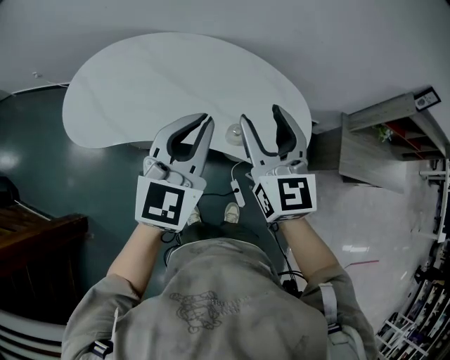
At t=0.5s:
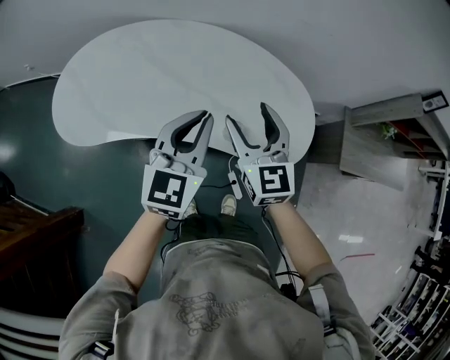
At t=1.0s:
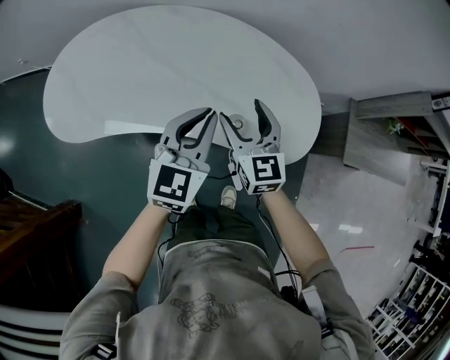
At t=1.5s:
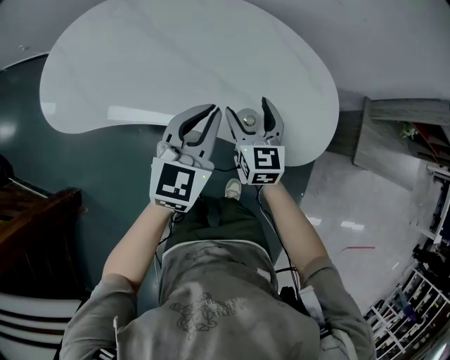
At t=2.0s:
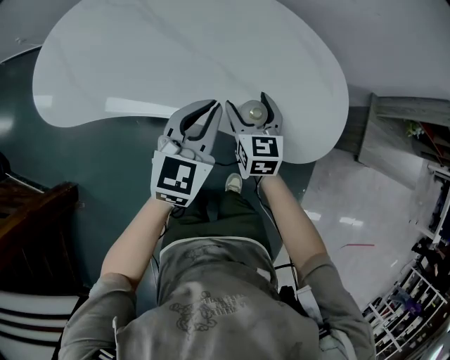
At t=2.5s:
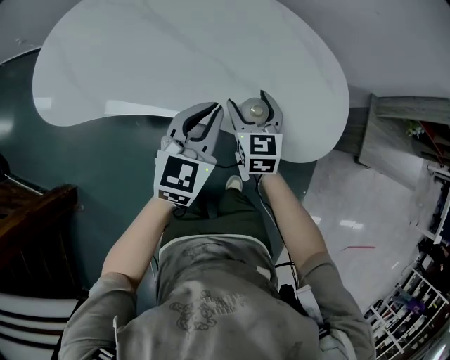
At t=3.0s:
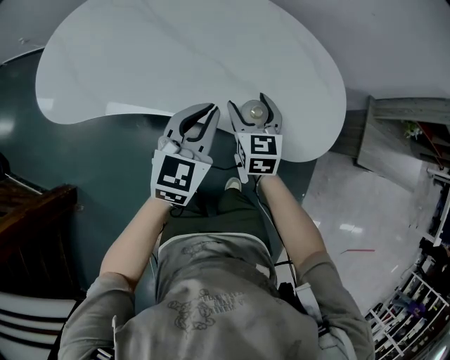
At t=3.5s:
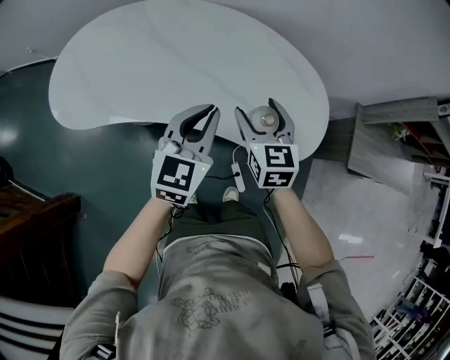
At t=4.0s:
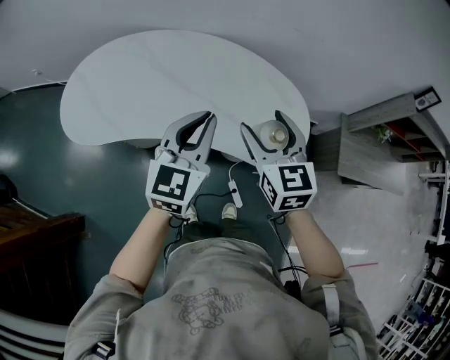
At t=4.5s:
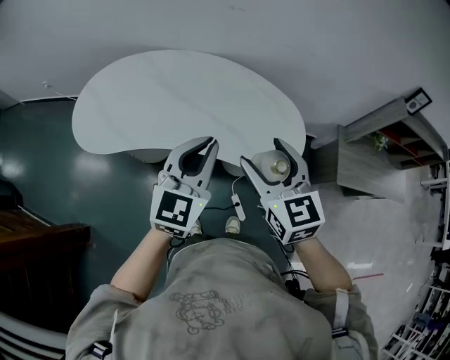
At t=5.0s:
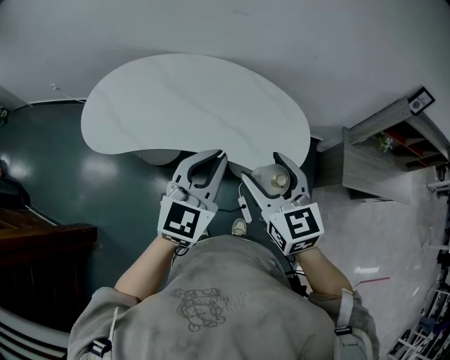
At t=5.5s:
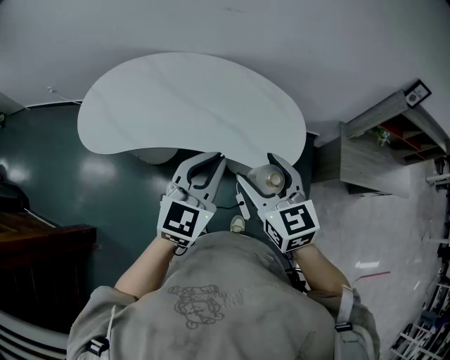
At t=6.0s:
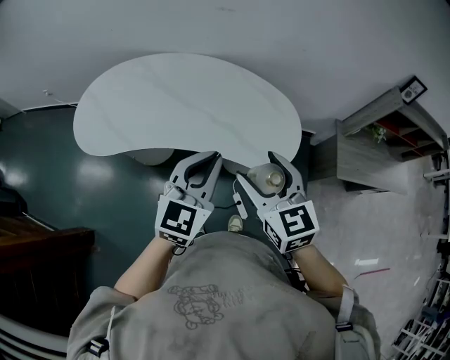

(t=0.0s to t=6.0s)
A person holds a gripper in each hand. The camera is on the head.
t=0.0s - t=2.0s: Both grippers move downward, roughly 30 cm. The right gripper rotates some 20 degrees.
t=2.0s - t=4.0s: Both grippers travel together upward, approximately 20 cm.
t=4.0s - t=6.0s: Both grippers move backward, about 10 cm.

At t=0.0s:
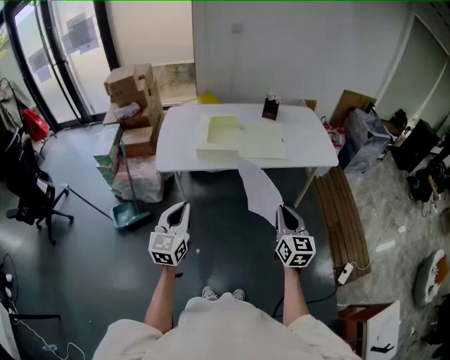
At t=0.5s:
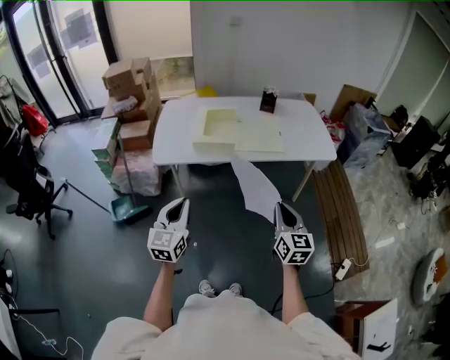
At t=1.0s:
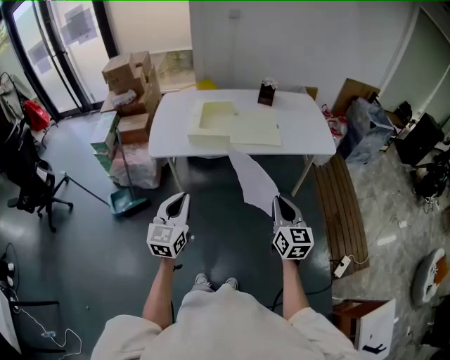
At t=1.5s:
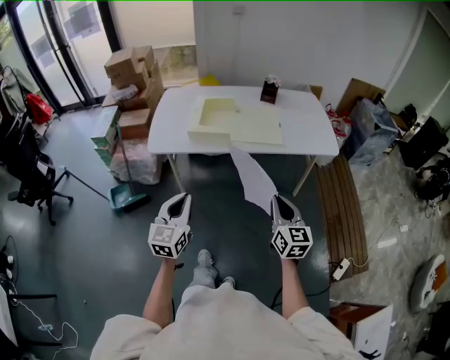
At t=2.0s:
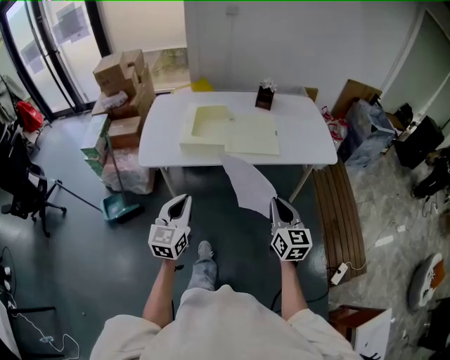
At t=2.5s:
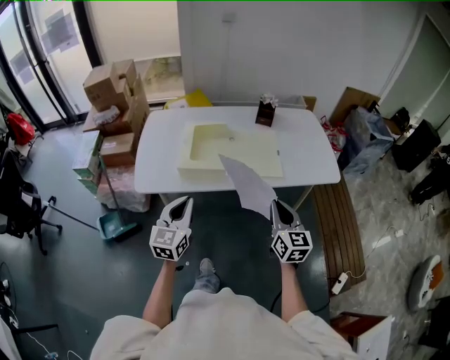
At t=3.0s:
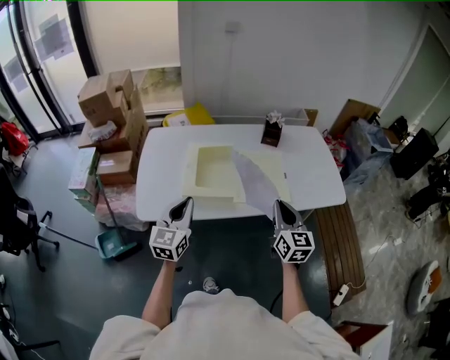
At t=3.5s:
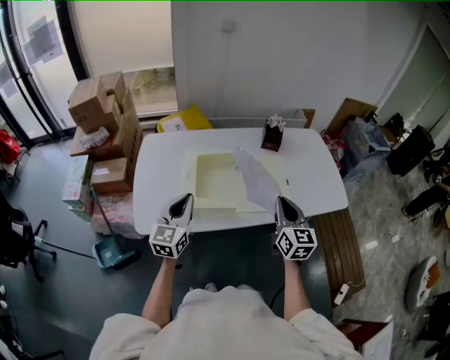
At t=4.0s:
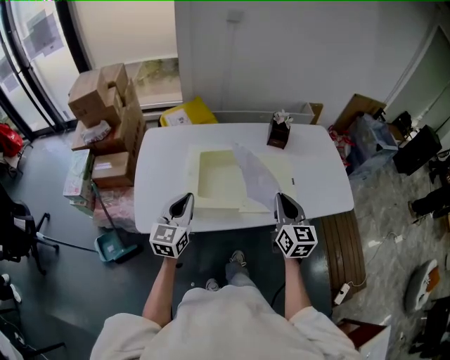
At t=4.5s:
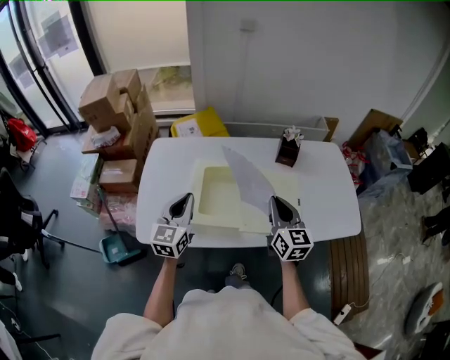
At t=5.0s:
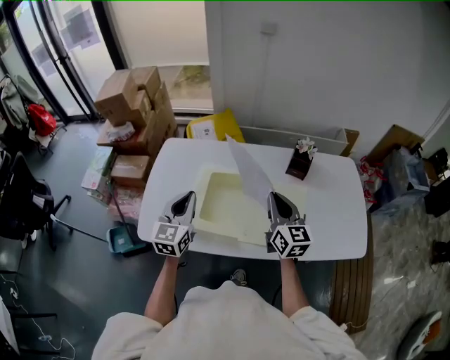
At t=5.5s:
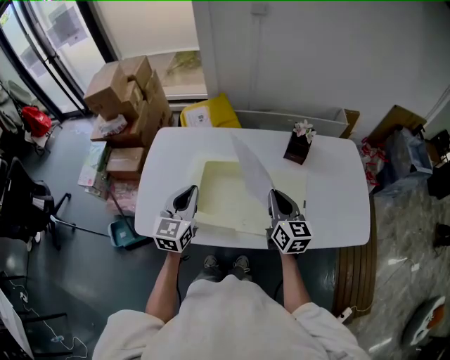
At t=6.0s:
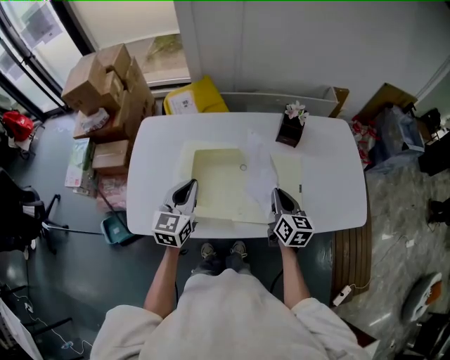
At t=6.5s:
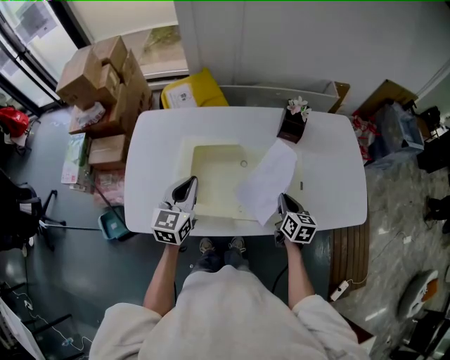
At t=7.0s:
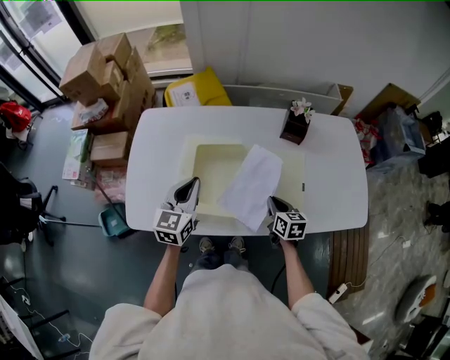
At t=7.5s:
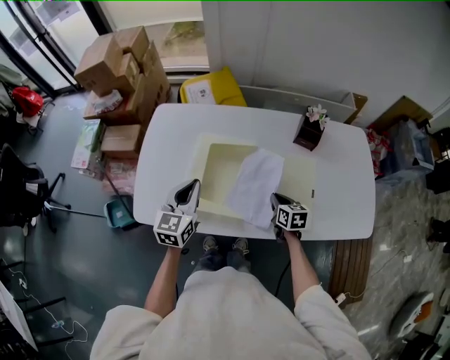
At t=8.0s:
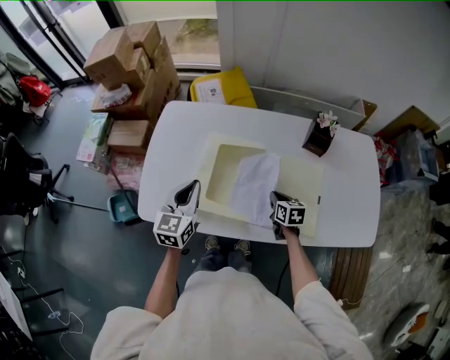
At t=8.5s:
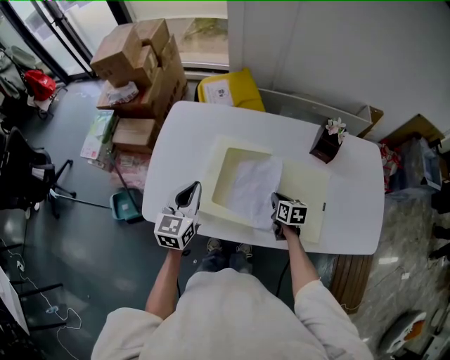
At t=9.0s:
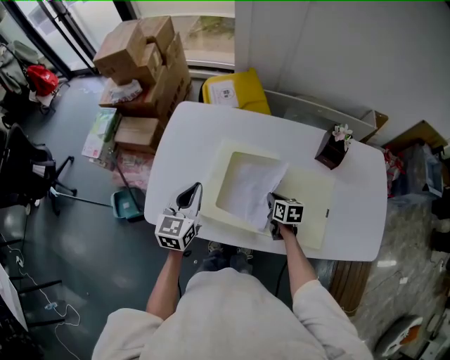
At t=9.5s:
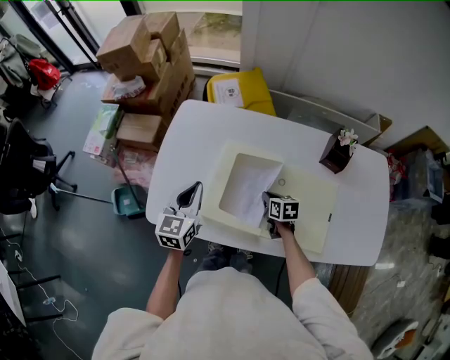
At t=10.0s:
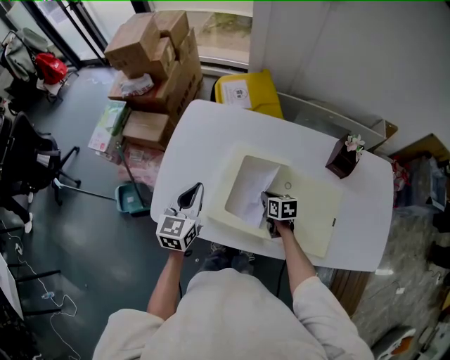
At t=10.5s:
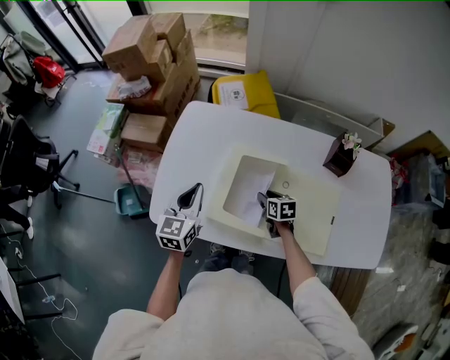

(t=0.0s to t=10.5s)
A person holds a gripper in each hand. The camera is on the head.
t=0.0s - t=2.0s: The right gripper goes roughly 10 cm forward and to the right. The left gripper heads to the right and forward, covering approximately 10 cm.
t=2.0s - t=4.0s: Both grippers move forward, about 35 cm.
t=4.0s - t=6.5s: The right gripper goes some 25 cm downward, forward and to the right, and swivels about 30 degrees. The left gripper moves forward and to the right, approximately 15 cm.
t=6.5s - t=8.5s: The right gripper travels to the left, downward and forward by some 15 cm, and swivels roughly 20 degrees. The left gripper goes approximately 10 cm to the left.
t=8.5s - t=10.5s: The right gripper is displaced to the left and forward by about 10 cm, and opens.

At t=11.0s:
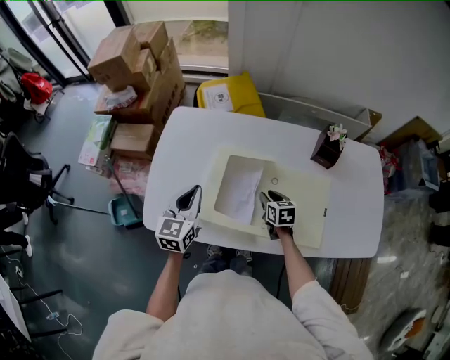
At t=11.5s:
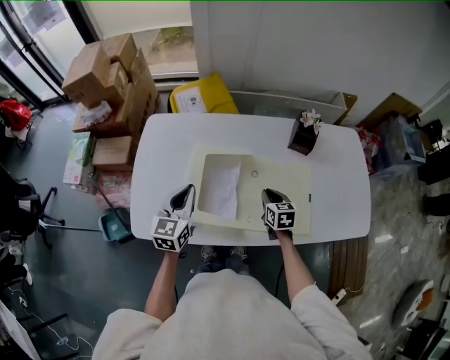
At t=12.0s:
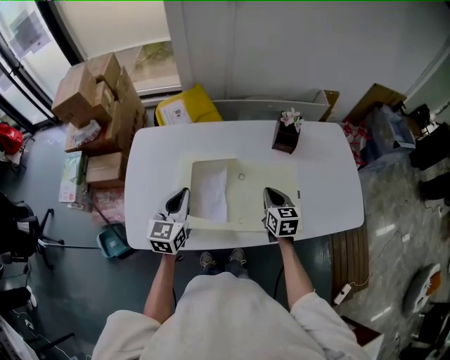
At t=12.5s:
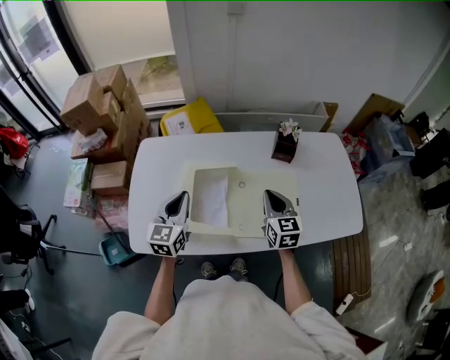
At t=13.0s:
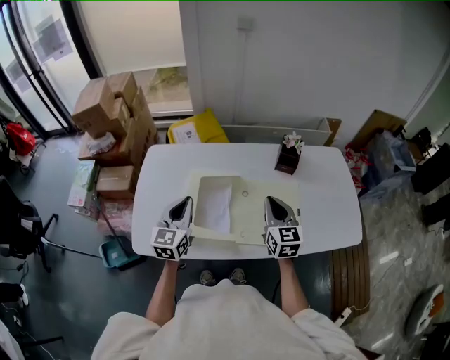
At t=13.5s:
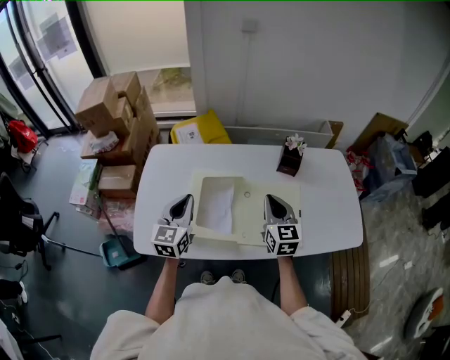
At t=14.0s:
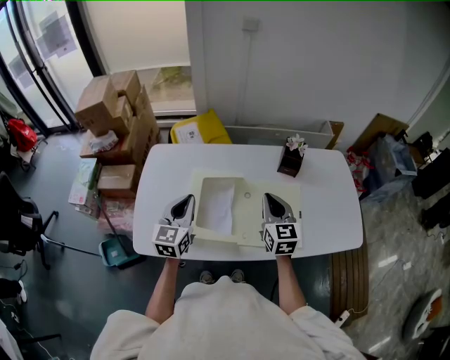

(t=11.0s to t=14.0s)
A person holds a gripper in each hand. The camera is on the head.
t=11.0s - t=12.5s: The right gripper goes about 20 cm upward and to the right, turns by some 30 degrees, and closes. Meanwhile the left gripper travels to the right by about 5 cm.
t=12.5s - t=14.0s: The right gripper ends up some 5 cm from where it was.

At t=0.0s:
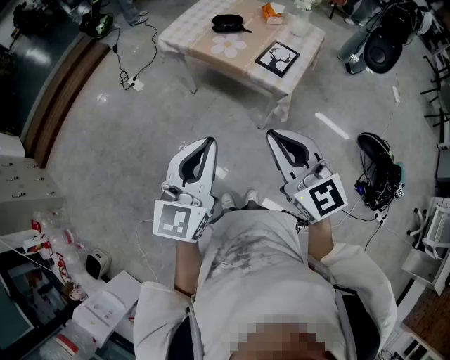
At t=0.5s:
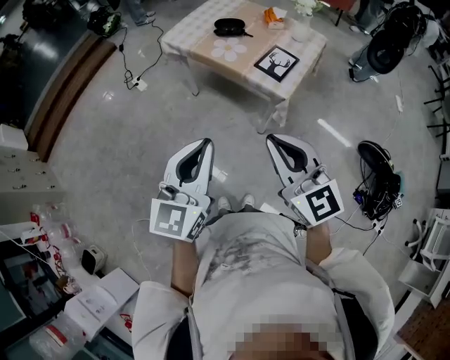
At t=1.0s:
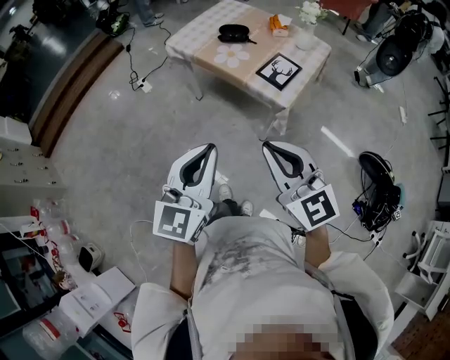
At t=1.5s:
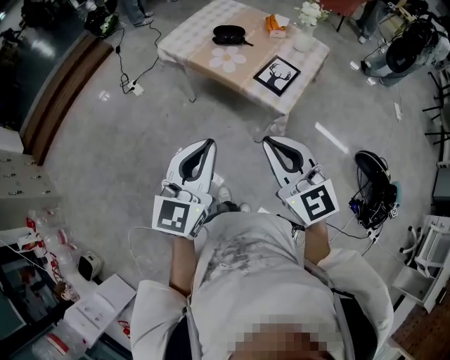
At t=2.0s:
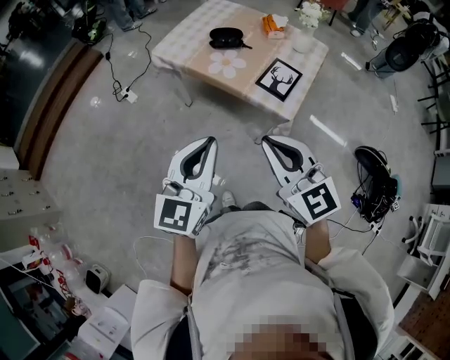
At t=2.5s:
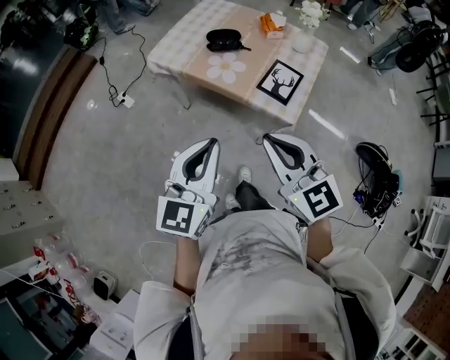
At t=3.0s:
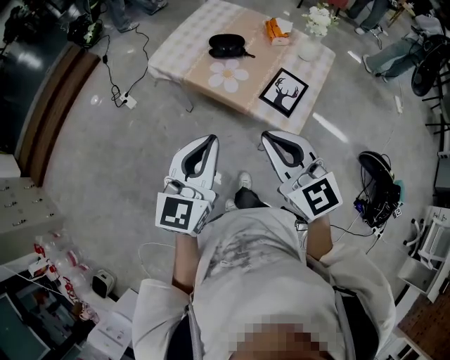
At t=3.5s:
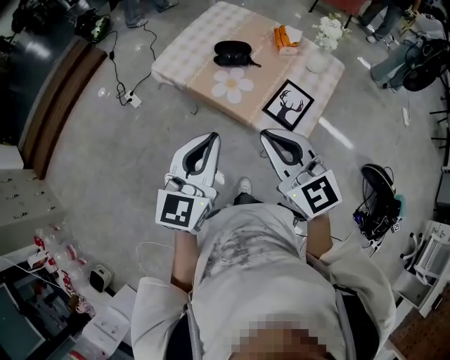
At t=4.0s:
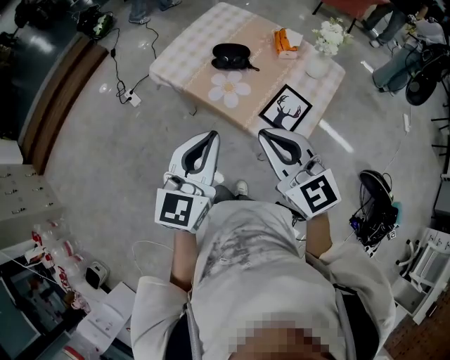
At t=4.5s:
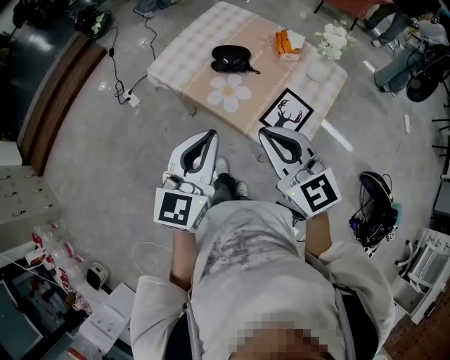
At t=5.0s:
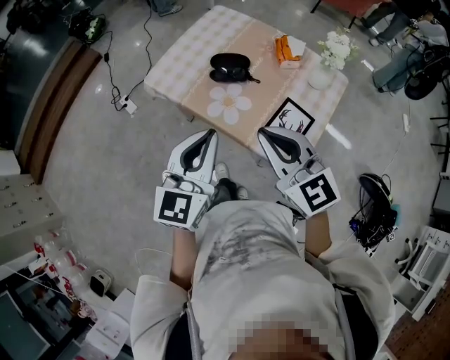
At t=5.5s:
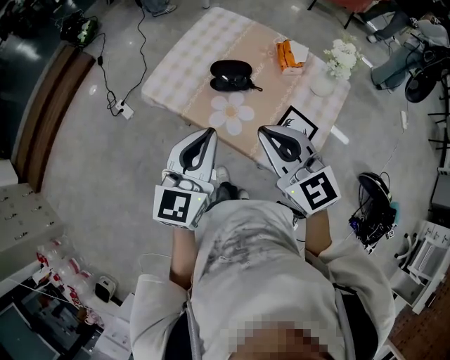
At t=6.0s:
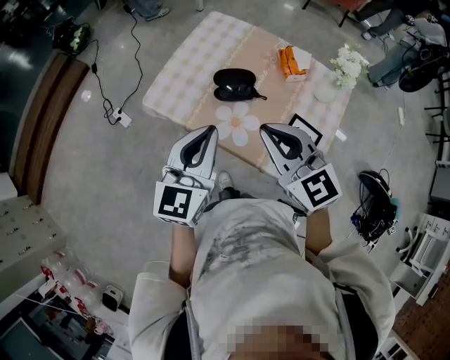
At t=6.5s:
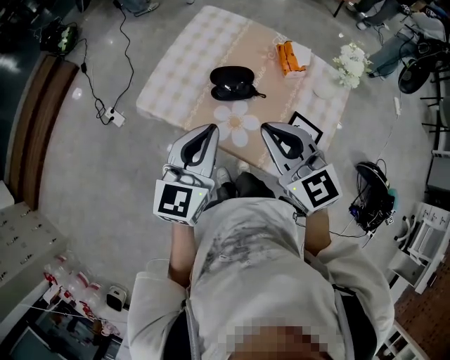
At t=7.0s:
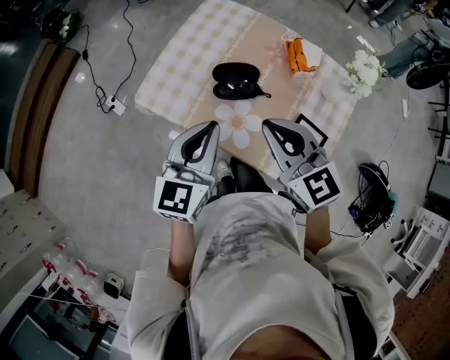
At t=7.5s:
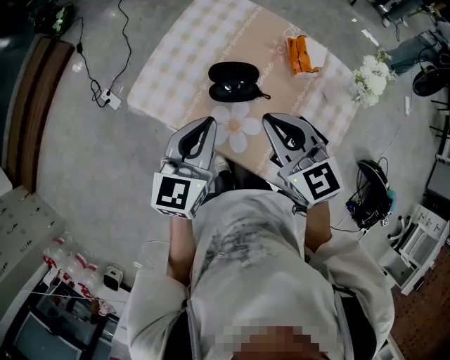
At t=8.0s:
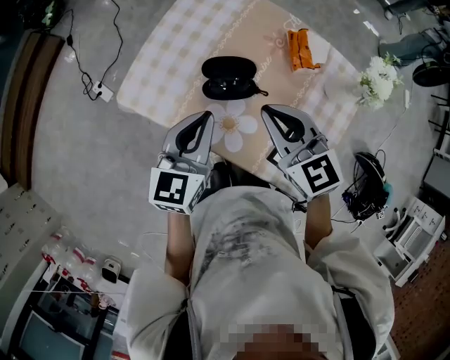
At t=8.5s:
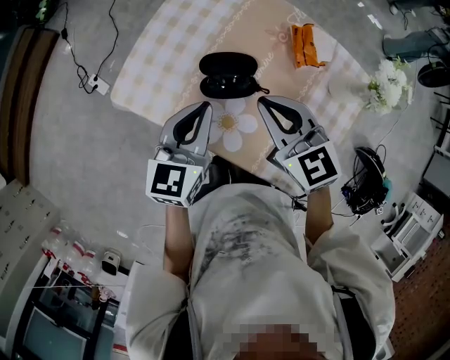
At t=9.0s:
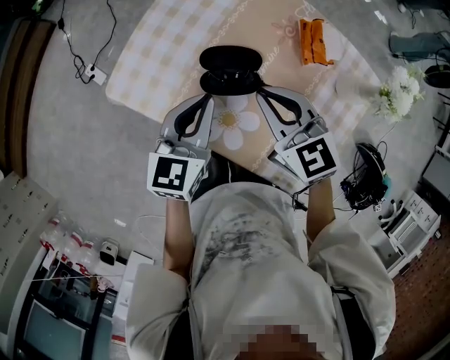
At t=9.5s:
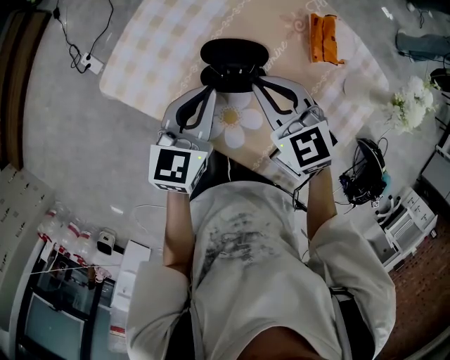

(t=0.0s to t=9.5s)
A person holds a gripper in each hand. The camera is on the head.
t=0.0s - t=2.0s: Both grippers travel together forward, about 15 cm.
t=2.0s - t=4.0s: Both grippers travel together forward, about 20 cm.
t=4.0s - t=5.5s: The grippers both shift forward by about 15 cm.
t=5.5s - t=7.5s: The grippers both shift forward and downward by about 20 cm.
t=7.5s - t=9.5s: The two grippers go about 15 cm downward and forward.
